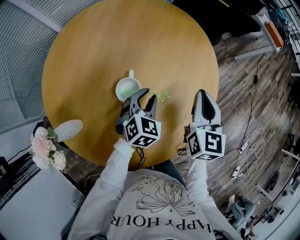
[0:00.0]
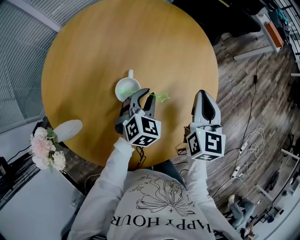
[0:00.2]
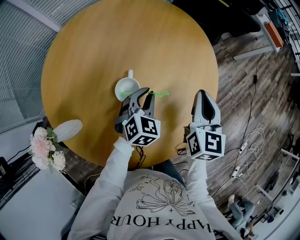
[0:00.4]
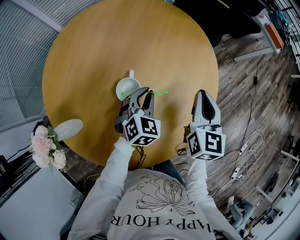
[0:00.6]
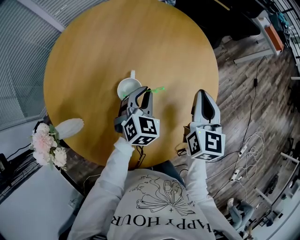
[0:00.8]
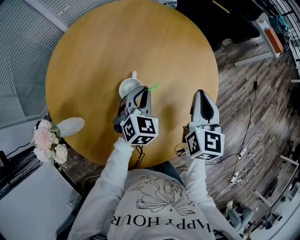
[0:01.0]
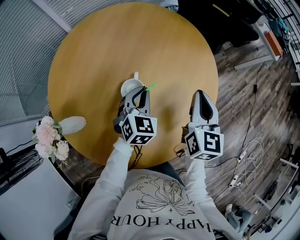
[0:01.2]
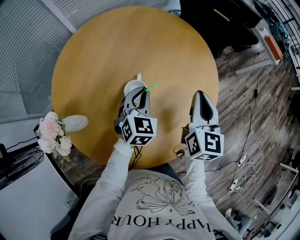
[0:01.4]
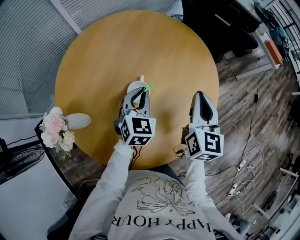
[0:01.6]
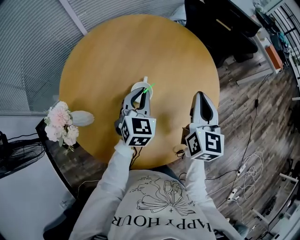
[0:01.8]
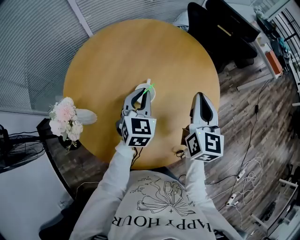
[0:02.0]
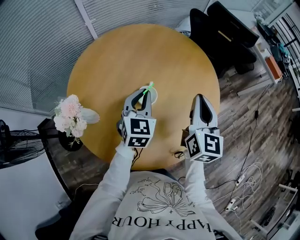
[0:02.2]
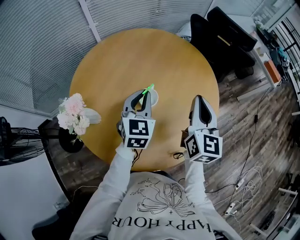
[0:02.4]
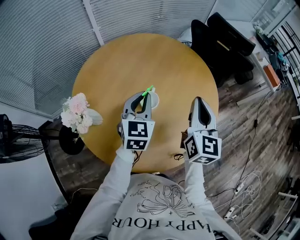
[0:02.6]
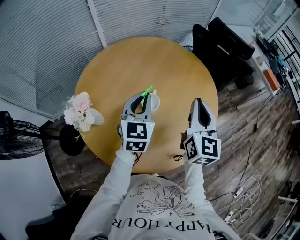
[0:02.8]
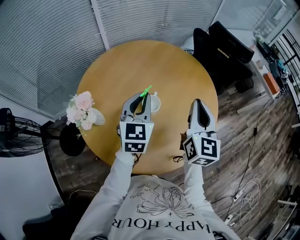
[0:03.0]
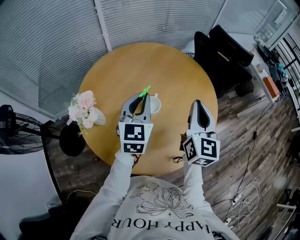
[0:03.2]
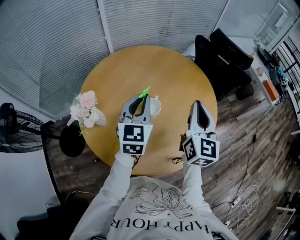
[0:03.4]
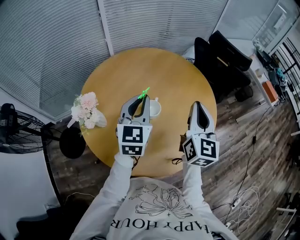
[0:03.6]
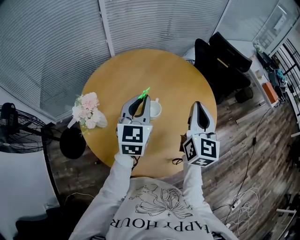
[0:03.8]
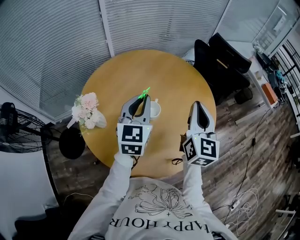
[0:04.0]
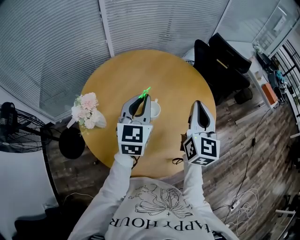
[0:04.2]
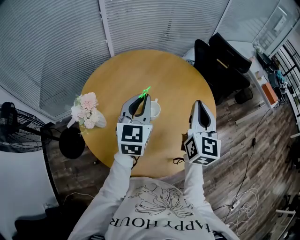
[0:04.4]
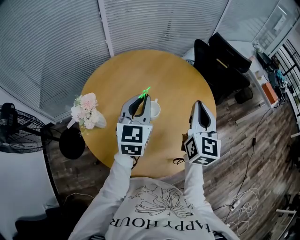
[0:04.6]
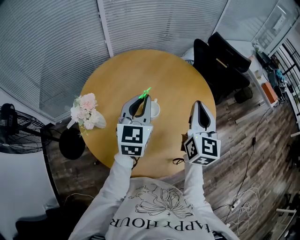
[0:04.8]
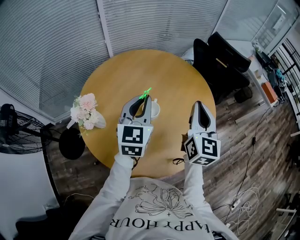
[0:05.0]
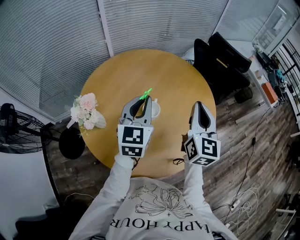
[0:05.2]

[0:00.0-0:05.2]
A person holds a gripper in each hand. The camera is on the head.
0:00.0 to 0:01.8: The left gripper moves upward and to the left, about 15 cm, turns by some 20 degrees, and closes up. Meanwhile the right gripper goes approximately 5 cm upward.
0:01.8 to 0:03.4: The left gripper shifts some 15 cm upward and backward, and swivels approximately 20 degrees. Meanwhile the right gripper shifts roughly 10 cm upward.
0:03.4 to 0:05.2: The grippers move only a little.

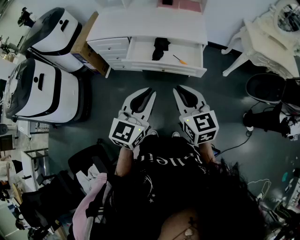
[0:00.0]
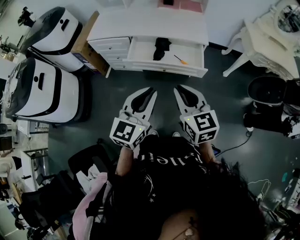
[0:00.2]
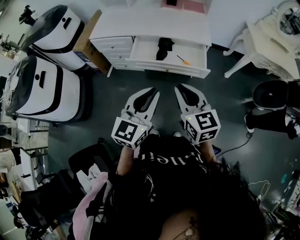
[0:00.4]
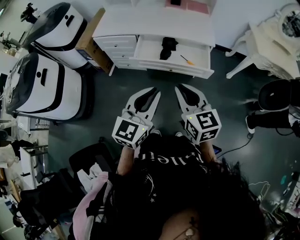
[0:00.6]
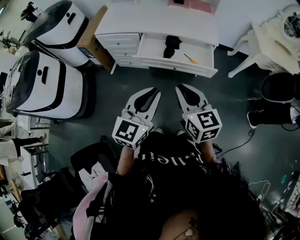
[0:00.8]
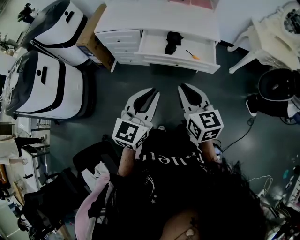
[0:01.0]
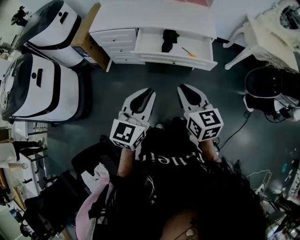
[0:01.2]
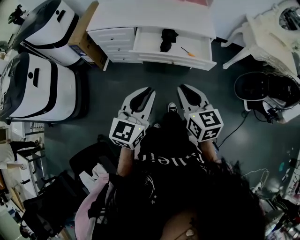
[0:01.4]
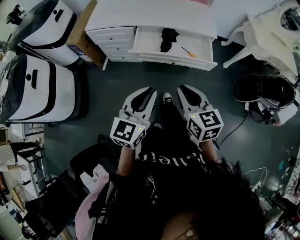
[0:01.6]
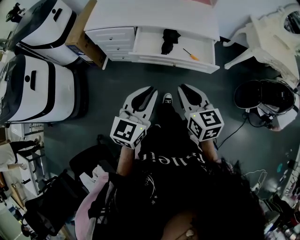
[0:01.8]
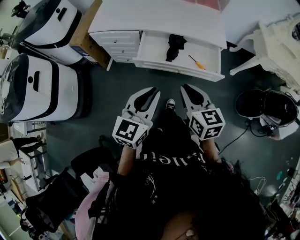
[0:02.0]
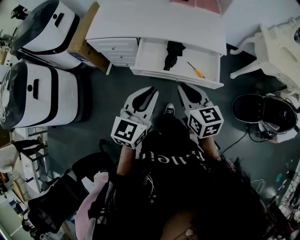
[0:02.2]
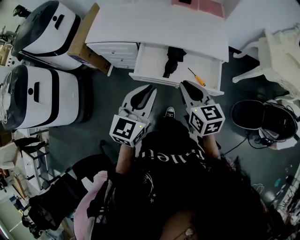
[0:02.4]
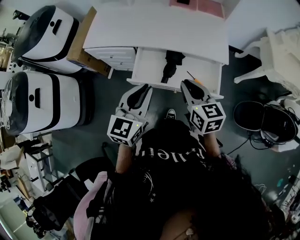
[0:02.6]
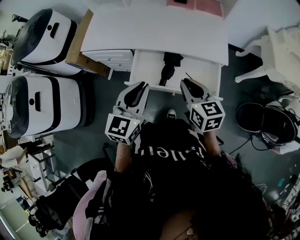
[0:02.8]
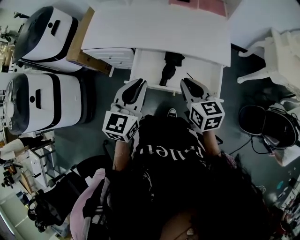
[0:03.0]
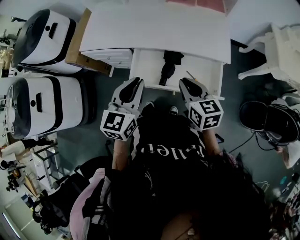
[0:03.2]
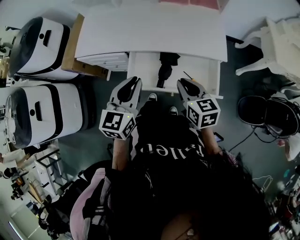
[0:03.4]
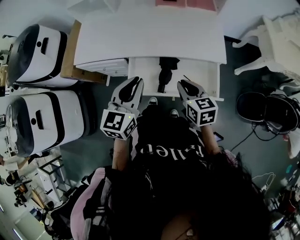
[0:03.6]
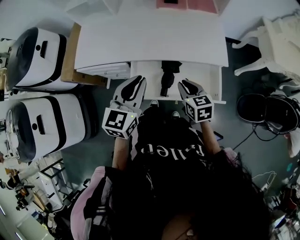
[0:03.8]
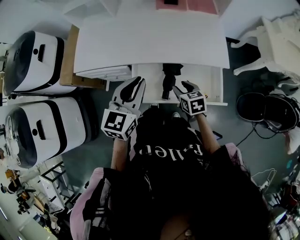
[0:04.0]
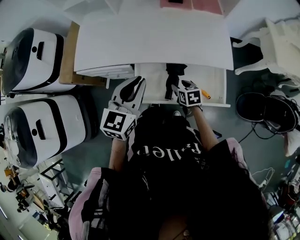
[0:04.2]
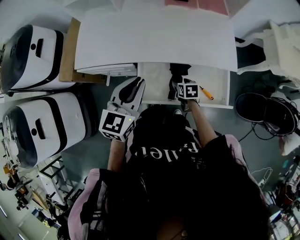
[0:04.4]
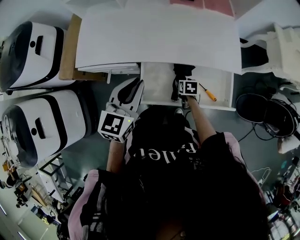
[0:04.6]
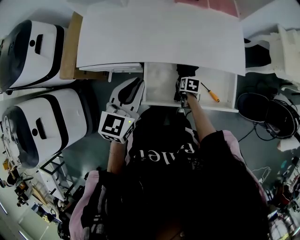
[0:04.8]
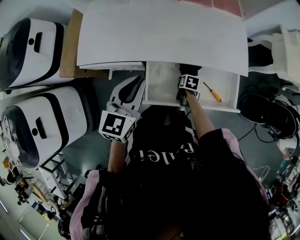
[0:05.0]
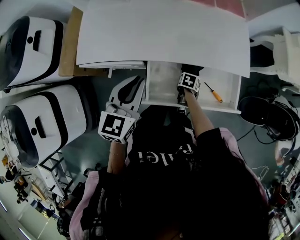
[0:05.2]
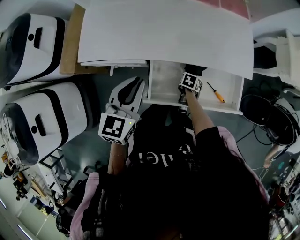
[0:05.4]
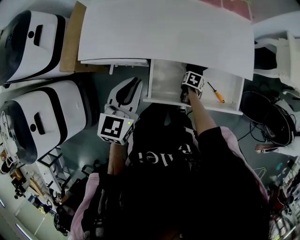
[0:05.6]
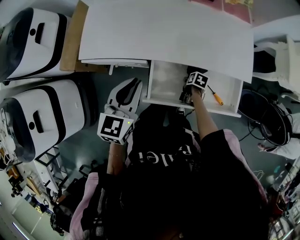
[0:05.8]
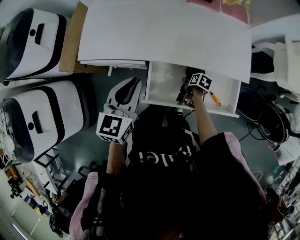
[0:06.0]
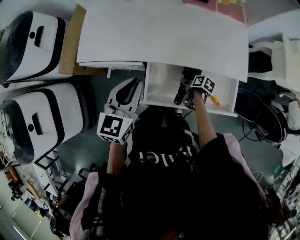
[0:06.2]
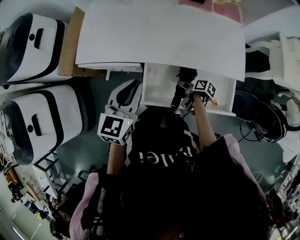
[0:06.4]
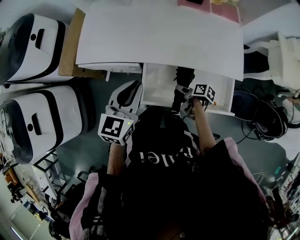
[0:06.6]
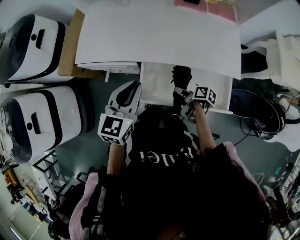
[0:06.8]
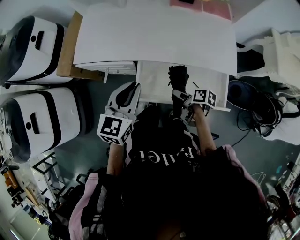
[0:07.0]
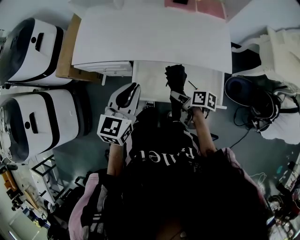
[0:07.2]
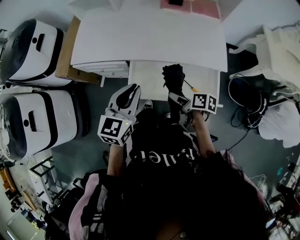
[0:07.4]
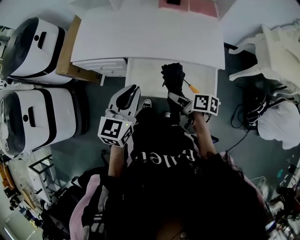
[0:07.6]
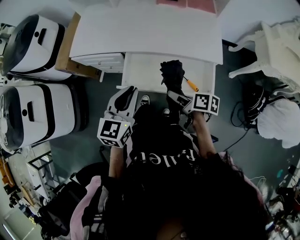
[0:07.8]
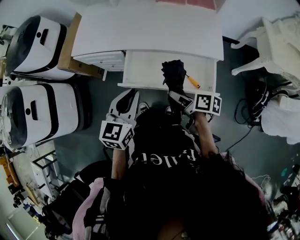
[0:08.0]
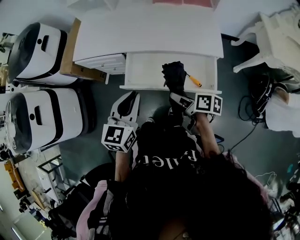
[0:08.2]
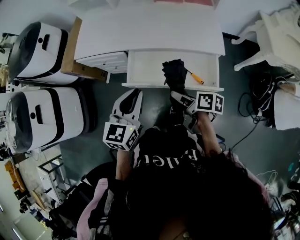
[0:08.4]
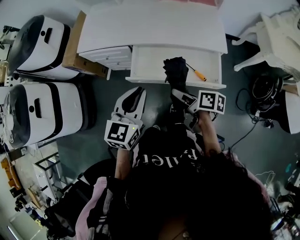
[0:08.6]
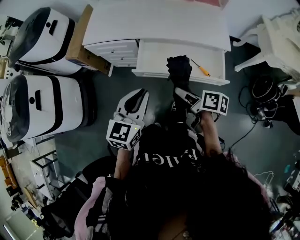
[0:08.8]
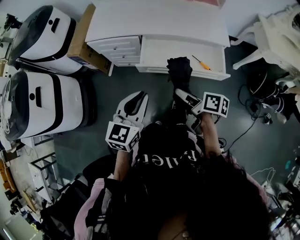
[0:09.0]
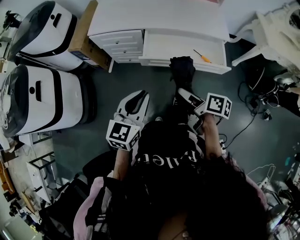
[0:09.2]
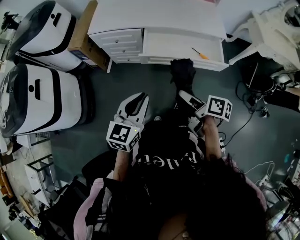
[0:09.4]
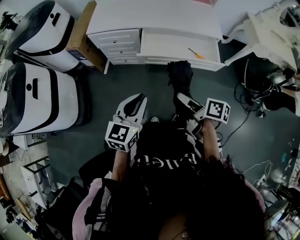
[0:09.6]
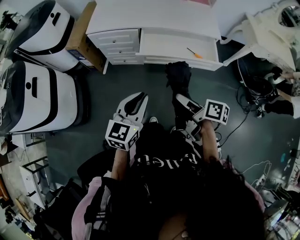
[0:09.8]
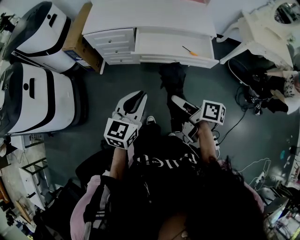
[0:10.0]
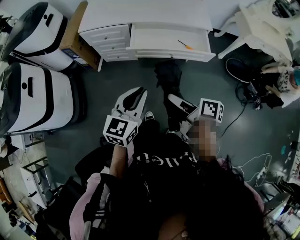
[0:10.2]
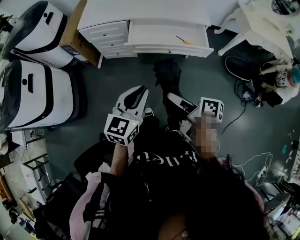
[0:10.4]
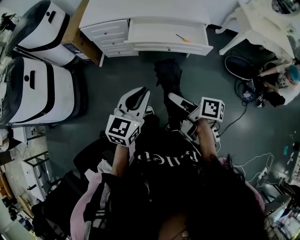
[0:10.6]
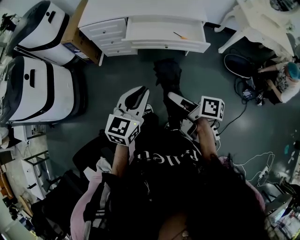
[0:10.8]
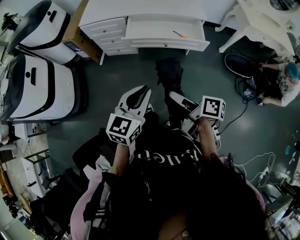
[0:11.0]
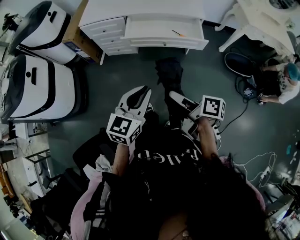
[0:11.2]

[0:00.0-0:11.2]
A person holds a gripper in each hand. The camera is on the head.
0:00.0 to 0:01.6: The two grippers go roughly 10 cm to the left and downward.
0:01.6 to 0:03.2: The two grippers go about 35 cm forward.
0:03.2 to 0:04.8: The left gripper moves forward and to the left, approximately 20 cm. The right gripper heads downward and forward, covering about 35 cm, tilts its fingers about 40 degrees downward, and opens its fingers.
0:04.8 to 0:06.4: The right gripper ends up approximately 5 cm from where it was, and changes its angle by some 40 degrees.
0:06.4 to 0:08.0: The right gripper shifts roughly 25 cm upward and backward, and changes its angle by some 30 degrees; the left gripper goes some 25 cm backward and to the right.
0:08.0 to 0:09.6: The grippers both shift backward and to the left by approximately 30 cm.
0:09.6 to 0:11.2: The left gripper shifts roughly 20 cm backward and to the right. The right gripper goes about 15 cm backward.

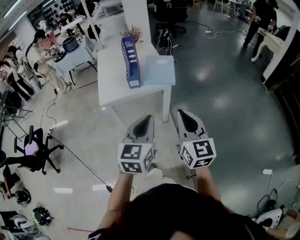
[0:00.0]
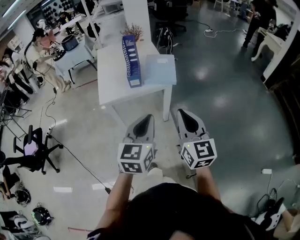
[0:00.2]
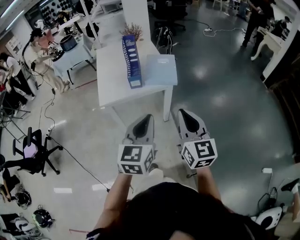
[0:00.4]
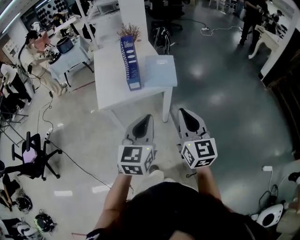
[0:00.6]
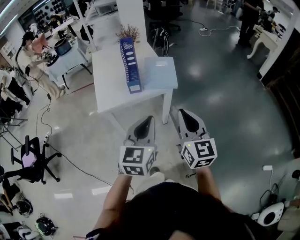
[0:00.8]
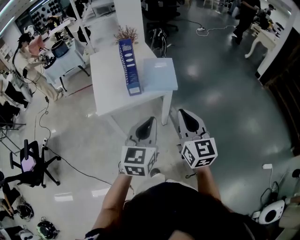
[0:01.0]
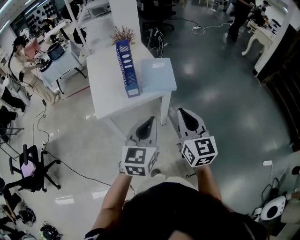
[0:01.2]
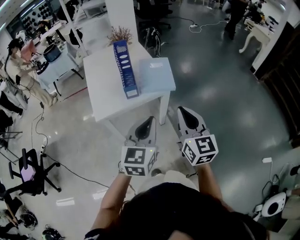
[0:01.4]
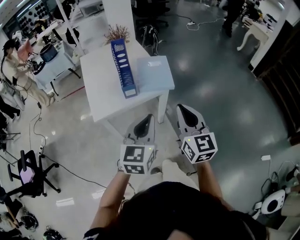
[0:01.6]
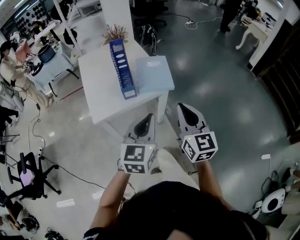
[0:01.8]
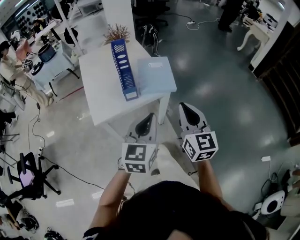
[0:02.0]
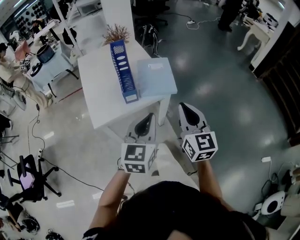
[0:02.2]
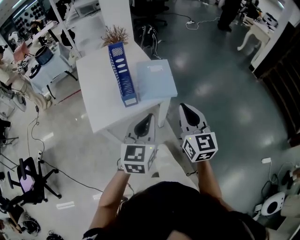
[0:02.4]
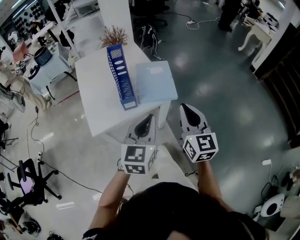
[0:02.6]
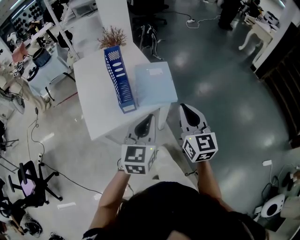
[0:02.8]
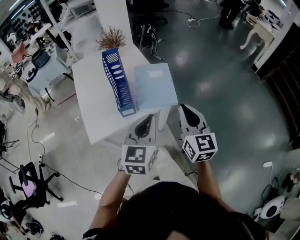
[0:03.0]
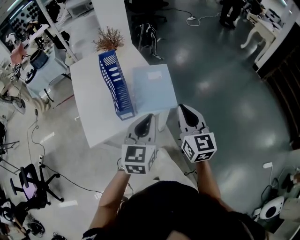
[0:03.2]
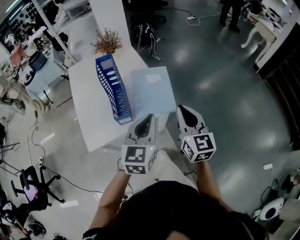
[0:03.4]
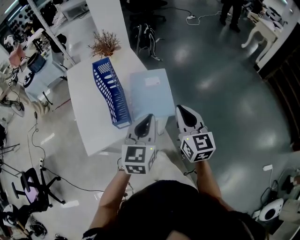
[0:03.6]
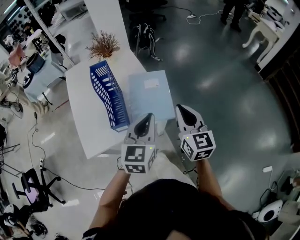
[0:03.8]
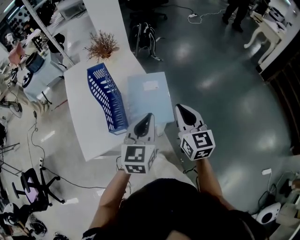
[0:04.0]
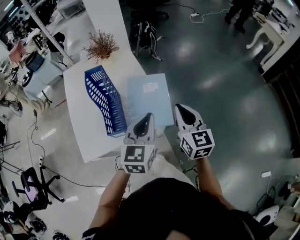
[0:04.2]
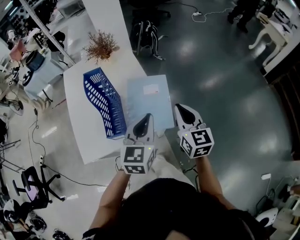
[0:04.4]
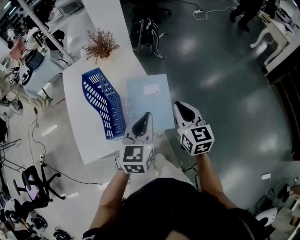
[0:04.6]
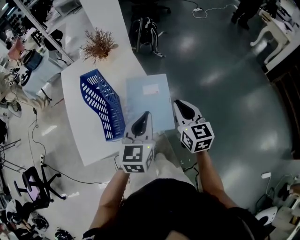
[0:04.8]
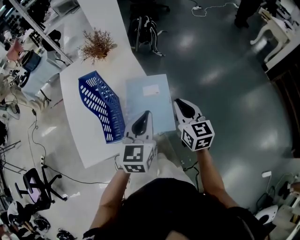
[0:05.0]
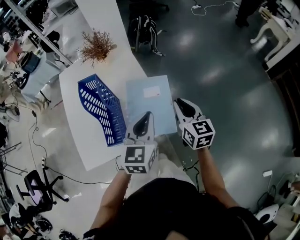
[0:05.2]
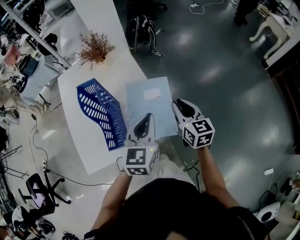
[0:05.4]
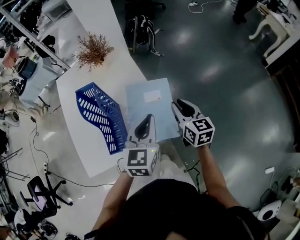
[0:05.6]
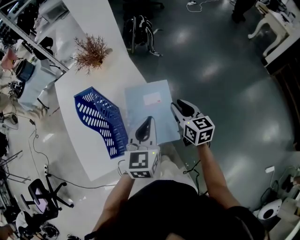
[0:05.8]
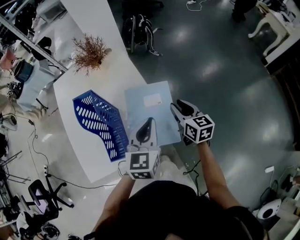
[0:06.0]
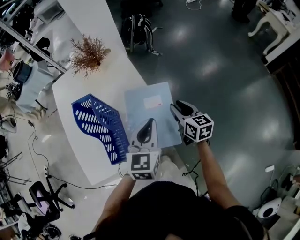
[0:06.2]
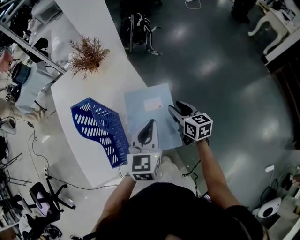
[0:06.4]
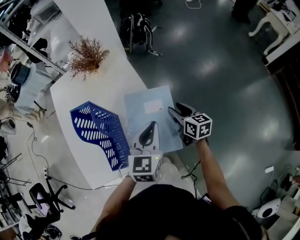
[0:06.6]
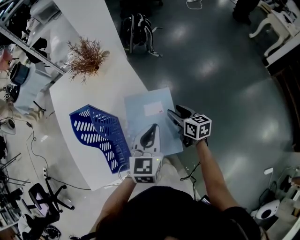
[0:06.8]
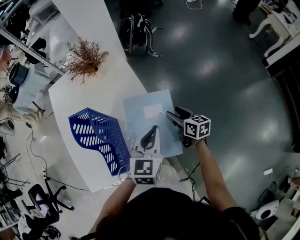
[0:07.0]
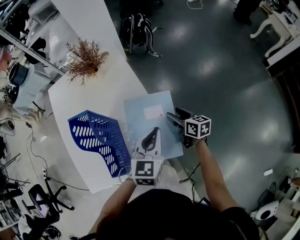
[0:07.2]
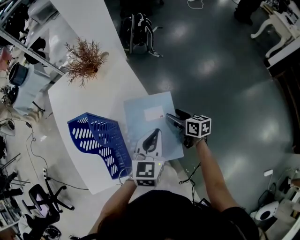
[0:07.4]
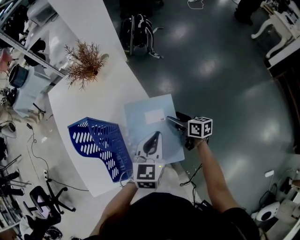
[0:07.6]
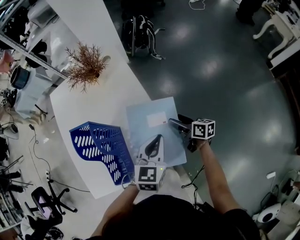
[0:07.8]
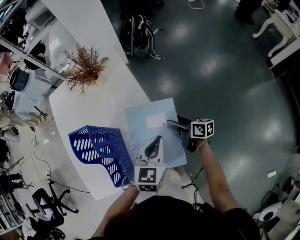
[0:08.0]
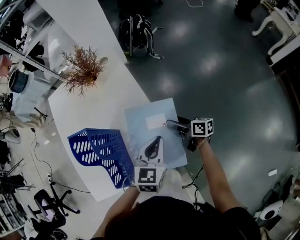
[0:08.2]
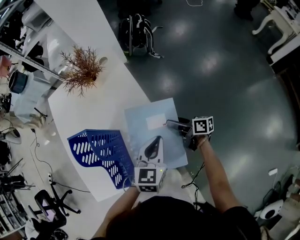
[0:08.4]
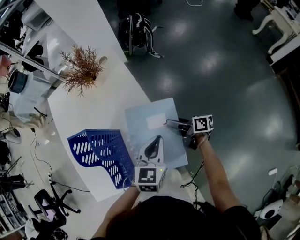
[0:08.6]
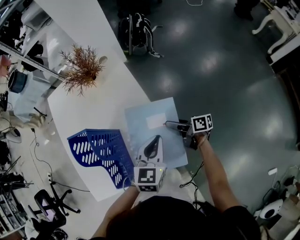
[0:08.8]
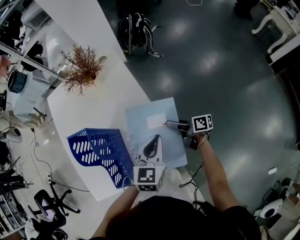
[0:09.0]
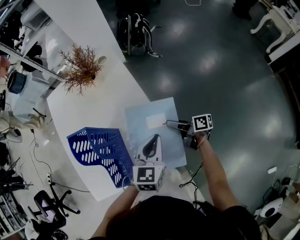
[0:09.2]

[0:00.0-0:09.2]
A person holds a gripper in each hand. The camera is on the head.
0:00.0 to 0:01.6: Both grippers move forward and to the left, some 15 cm.
0:01.6 to 0:03.0: Both grippers move forward, roughly 15 cm.
0:03.0 to 0:04.6: The two grippers go approximately 20 cm forward.
0:04.6 to 0:06.2: The right gripper heads forward and downward, covering some 15 cm, while the left gripper shifts approximately 10 cm forward.
0:06.2 to 0:07.6: The right gripper shifts about 10 cm downward, swivels some 30 degrees, and opens up. The left gripper travels downward by about 5 cm.
0:07.6 to 0:09.2: The right gripper swivels roughly 30 degrees.
